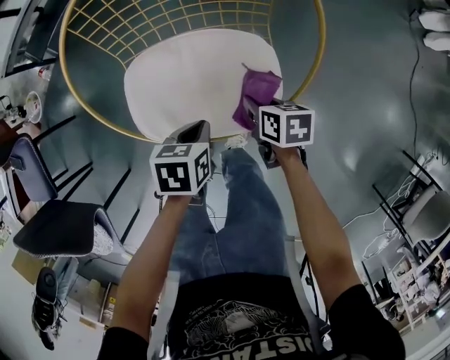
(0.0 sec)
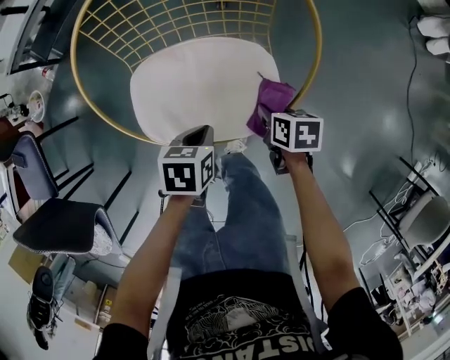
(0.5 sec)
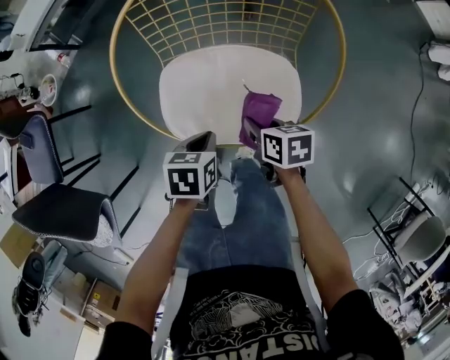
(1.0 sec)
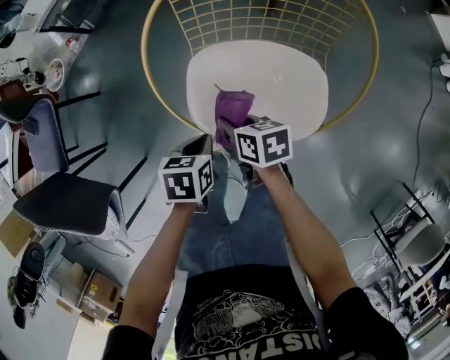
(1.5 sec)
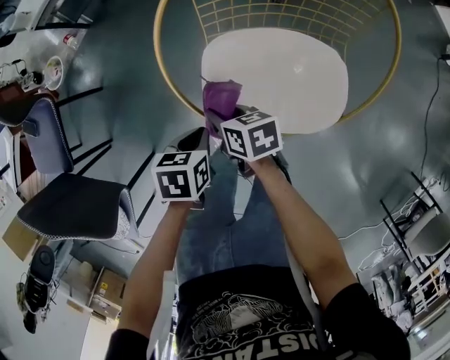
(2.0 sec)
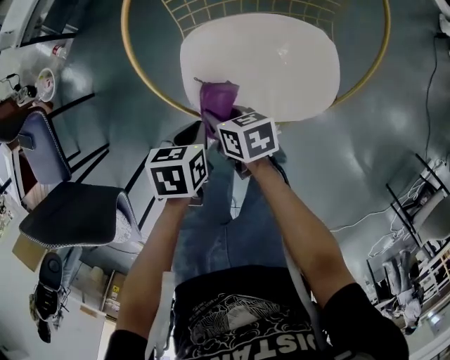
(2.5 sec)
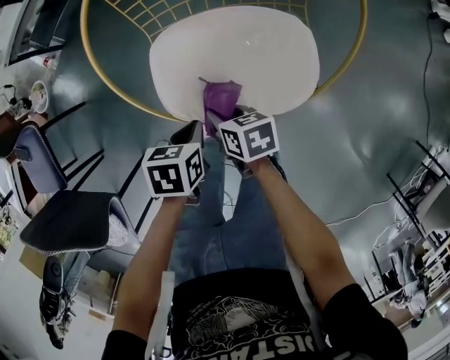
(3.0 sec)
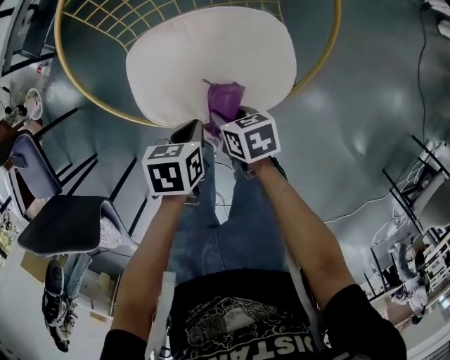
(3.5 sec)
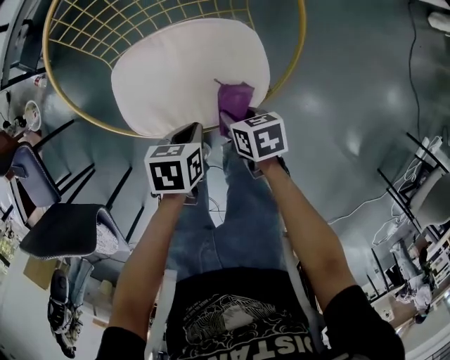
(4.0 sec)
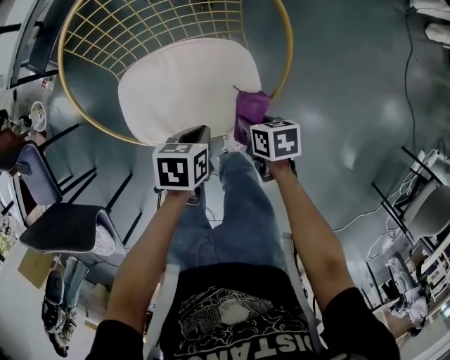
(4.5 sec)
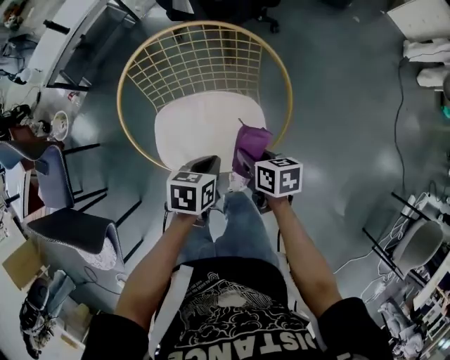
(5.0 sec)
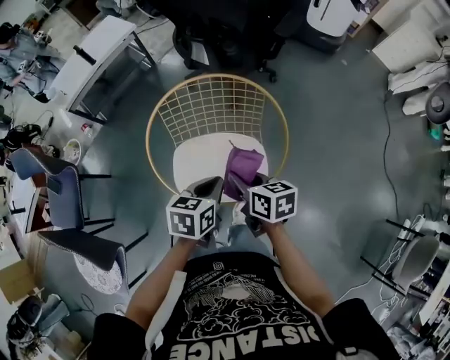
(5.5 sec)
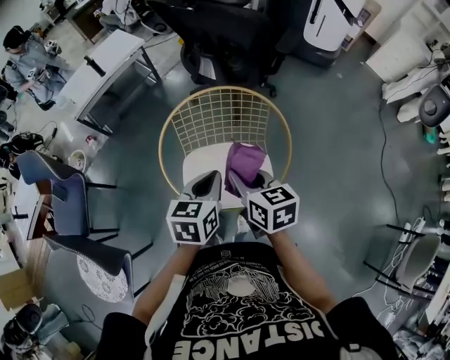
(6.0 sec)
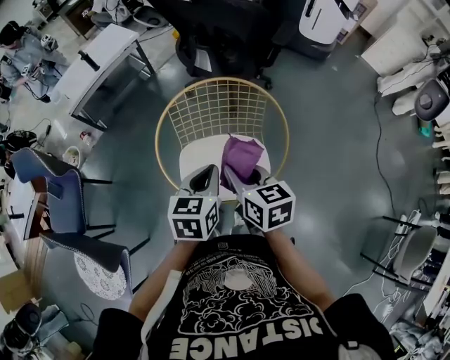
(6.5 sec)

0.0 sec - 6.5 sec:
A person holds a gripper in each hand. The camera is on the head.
0.0 sec - 2.0 sec: Both grippers travel together to the left, roughly 25 cm. The right gripper turns by some 20 degrees.
2.0 sec - 4.5 sec: Both grippers move to the right, roughly 30 cm.
4.5 sec - 6.5 sec: Both grippers travel together upward, about 30 cm. The left gripper turns by approximately 40 degrees; the right gripper rotates about 40 degrees.

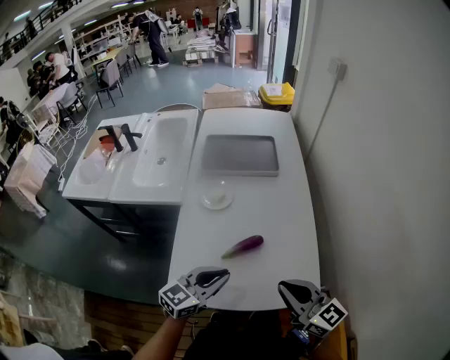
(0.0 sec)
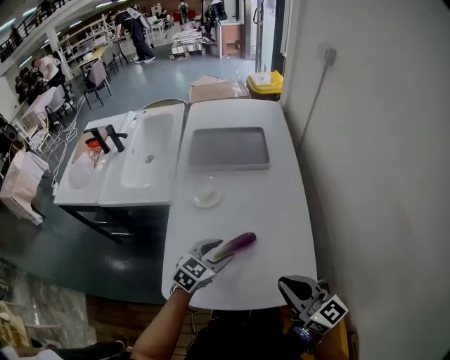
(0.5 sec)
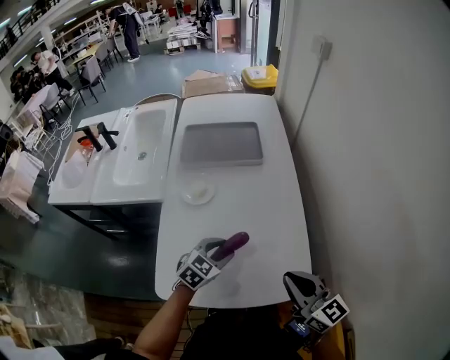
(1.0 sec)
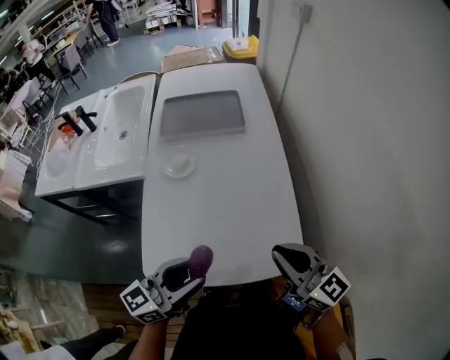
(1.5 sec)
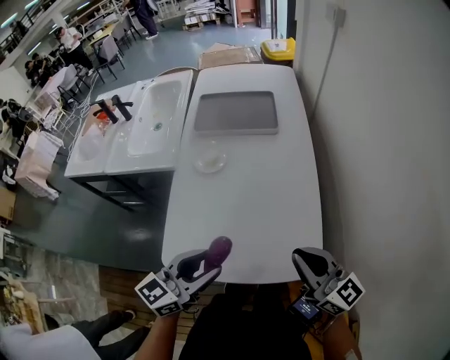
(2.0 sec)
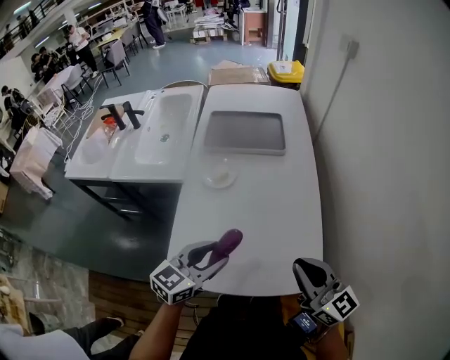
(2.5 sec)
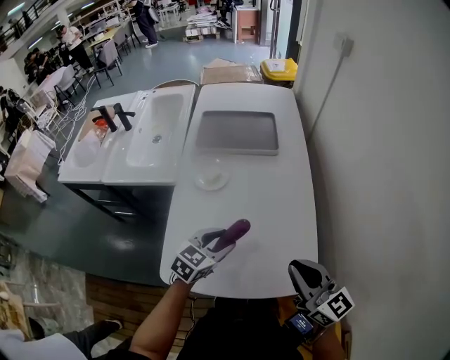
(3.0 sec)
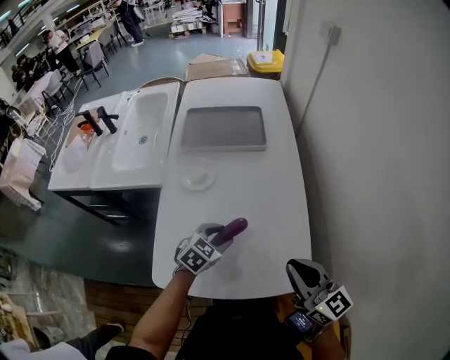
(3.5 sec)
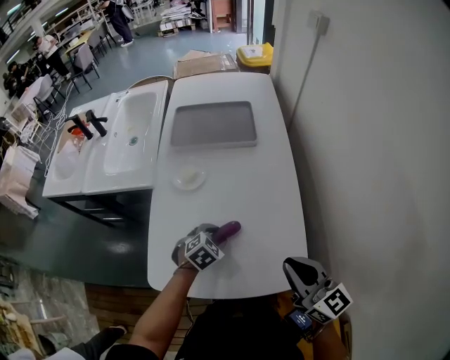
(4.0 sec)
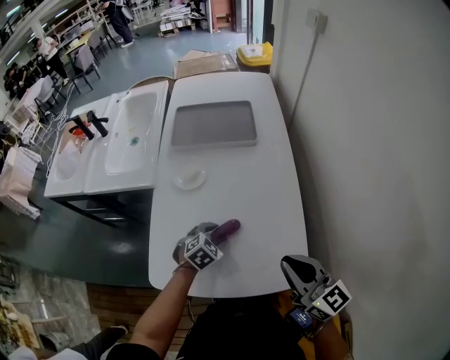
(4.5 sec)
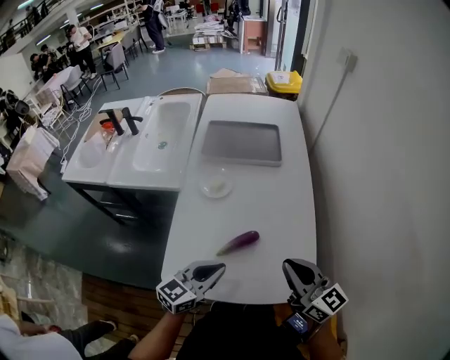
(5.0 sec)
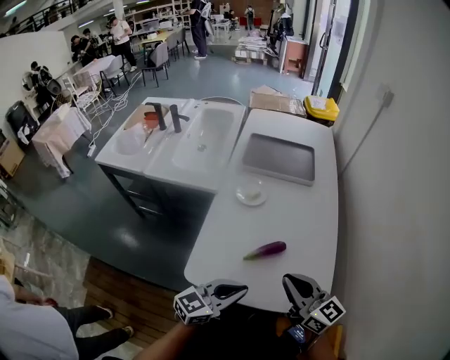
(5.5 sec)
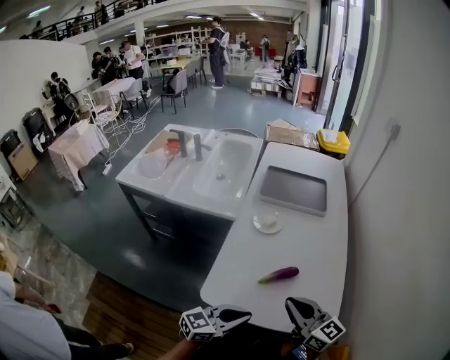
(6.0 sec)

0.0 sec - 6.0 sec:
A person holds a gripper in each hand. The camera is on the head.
0.0 sec - 2.0 sec: The right gripper travels to the right by some 5 cm. The left gripper moves some 10 cm downward and comes back, and opens up.
2.0 sec - 4.0 sec: The left gripper moves downward and forward, approximately 25 cm, and tilts its fingers approximately 50 degrees downward.
4.0 sec - 6.0 sec: The right gripper is displaced to the left and backward by about 20 cm. The left gripper heads backward and upward, covering roughly 30 cm, tips its fingers upward by roughly 50 degrees, and closes its fingers.

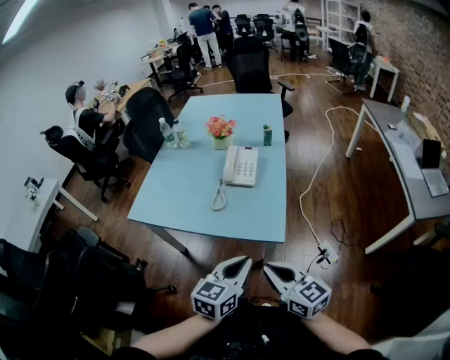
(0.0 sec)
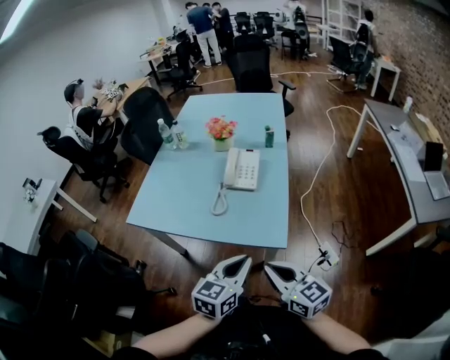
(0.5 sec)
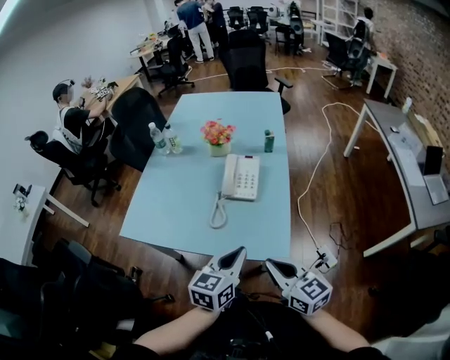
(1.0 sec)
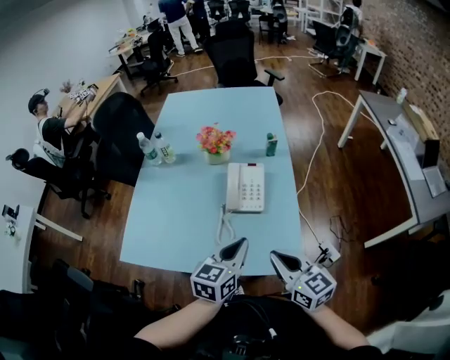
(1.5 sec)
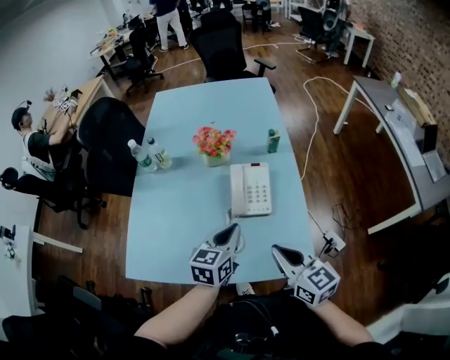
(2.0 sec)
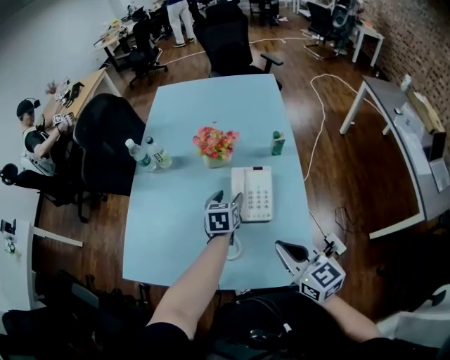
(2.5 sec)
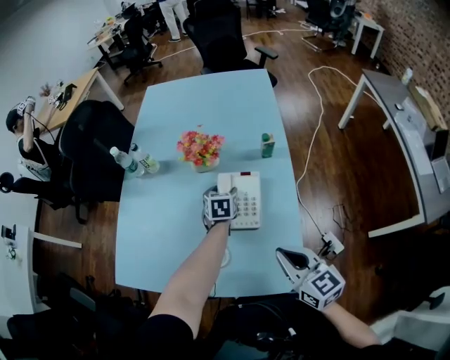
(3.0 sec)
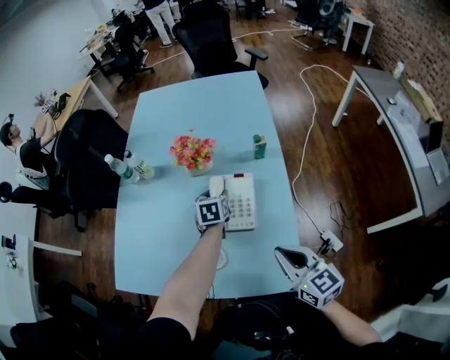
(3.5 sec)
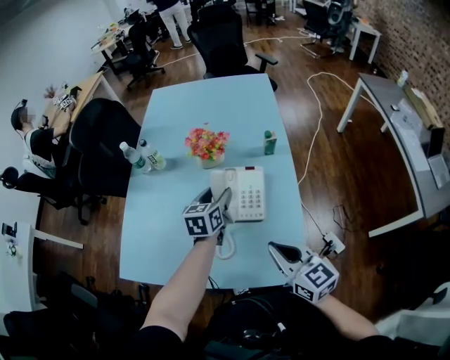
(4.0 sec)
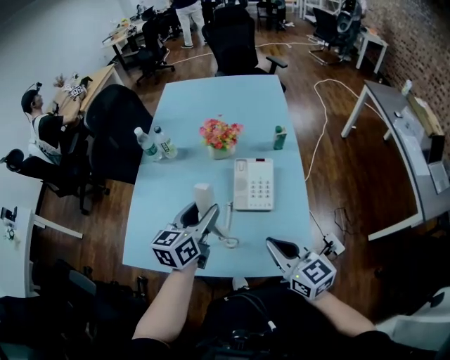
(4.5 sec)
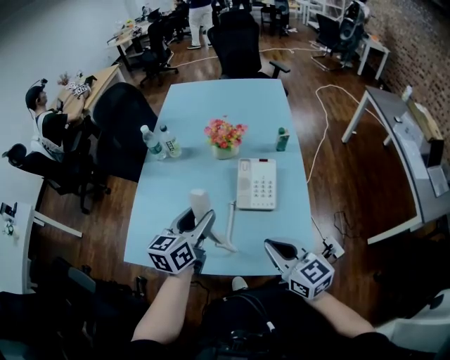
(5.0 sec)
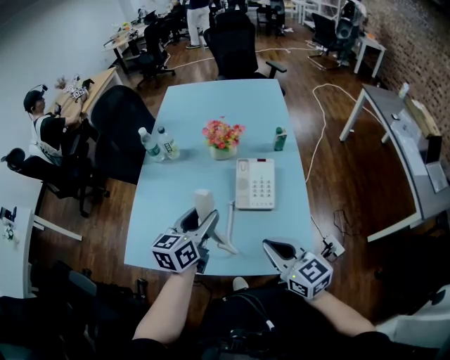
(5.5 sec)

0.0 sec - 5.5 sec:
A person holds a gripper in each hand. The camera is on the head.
0.0 sec - 2.0 sec: The two grippers go about 30 cm forward.
2.0 sec - 3.5 sec: The right gripper goes roughly 10 cm to the right; the left gripper travels forward and downward by roughly 25 cm, rotates some 30 degrees, and opens its fingers.
3.5 sec - 5.5 sec: The left gripper goes about 30 cm backward, upward and to the left, and turns by approximately 30 degrees, while the right gripper goes about 15 cm to the left and backward.

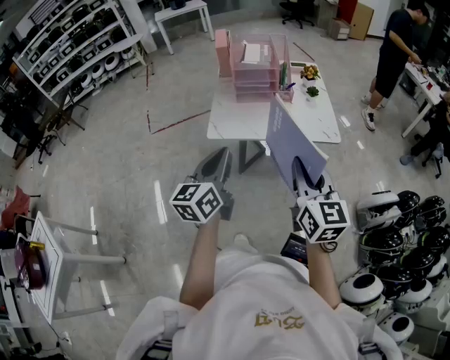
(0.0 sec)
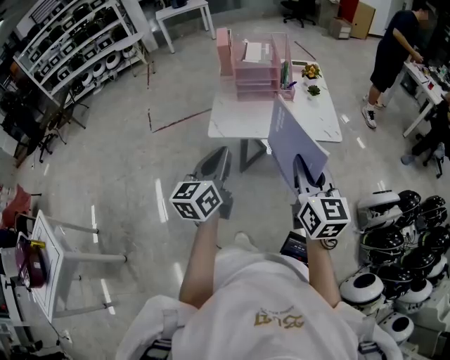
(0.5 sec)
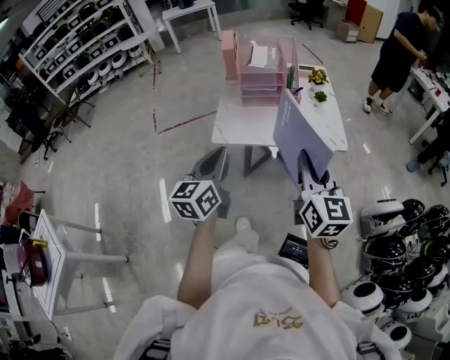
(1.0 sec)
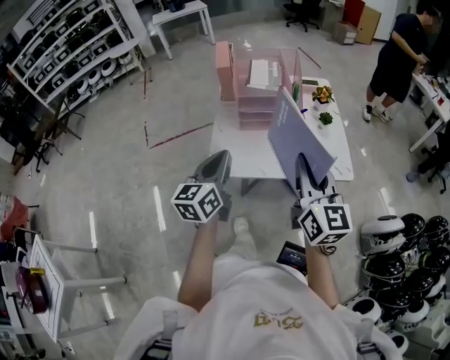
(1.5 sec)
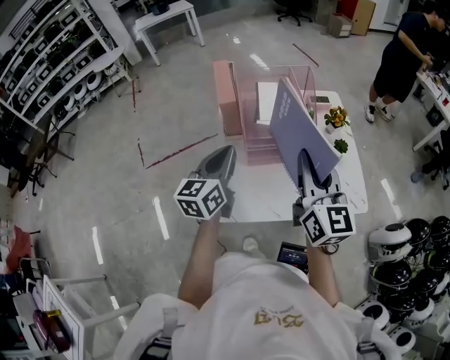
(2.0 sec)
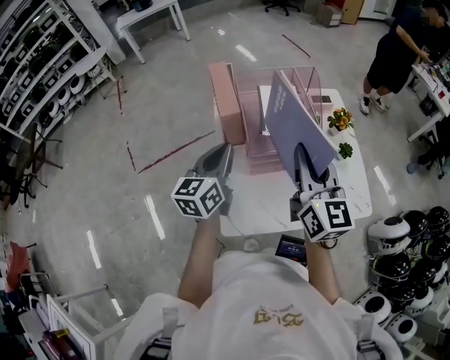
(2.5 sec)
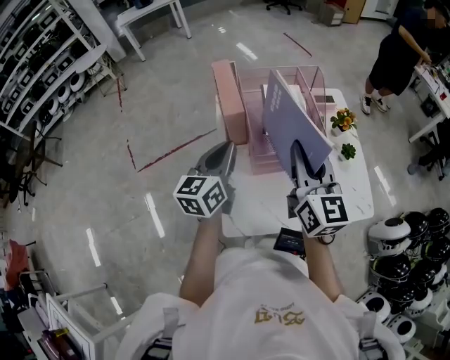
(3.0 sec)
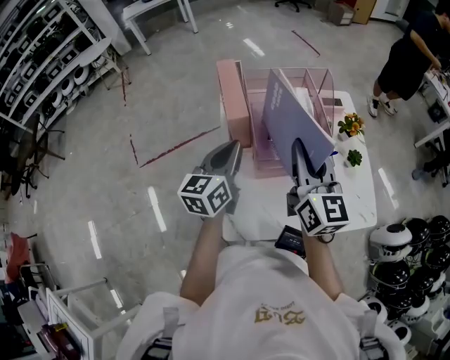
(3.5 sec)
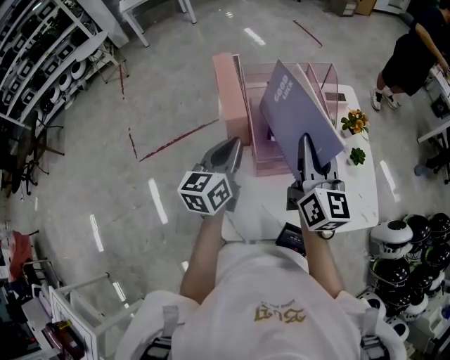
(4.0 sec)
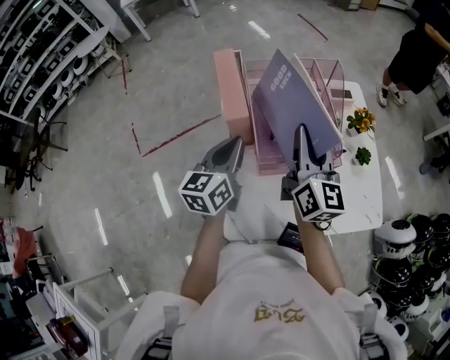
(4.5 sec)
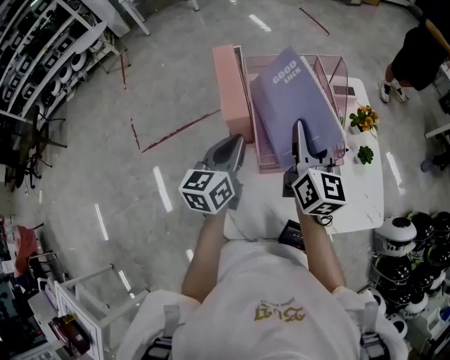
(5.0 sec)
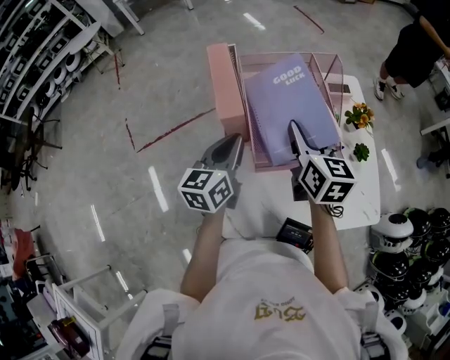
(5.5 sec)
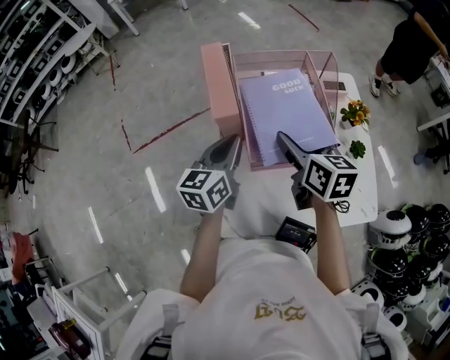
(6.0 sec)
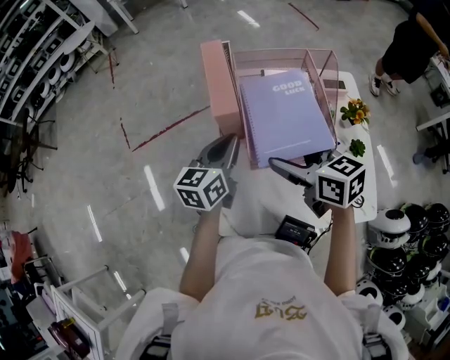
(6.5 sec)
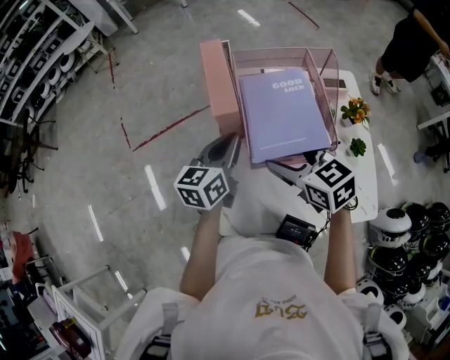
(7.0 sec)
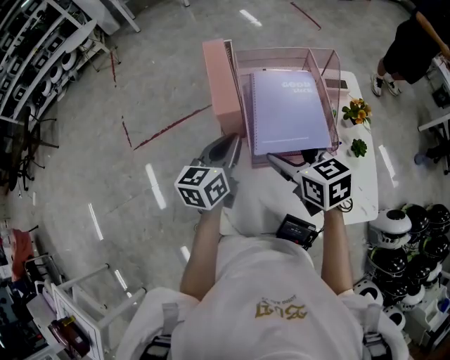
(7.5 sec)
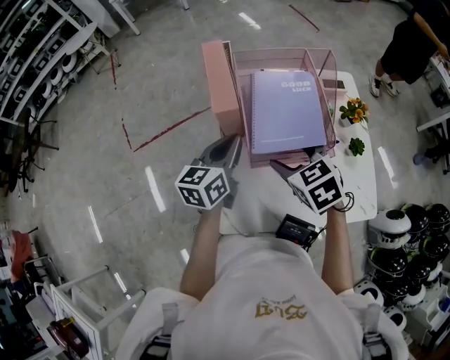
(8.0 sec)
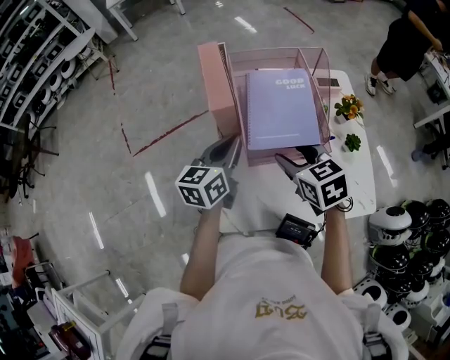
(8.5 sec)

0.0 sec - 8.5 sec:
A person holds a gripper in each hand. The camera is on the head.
0.0 sec - 2.0 sec: Both grippers are carried forward, roughly 40 cm.
2.0 sec - 4.0 sec: The left gripper goes roughly 15 cm forward and downward. Meanwhile the right gripper goes roughly 15 cm forward.
4.0 sec - 6.5 sec: The right gripper shifts some 10 cm downward and to the left, changes its angle by some 50 degrees, and opens up.
6.5 sec - 8.5 sec: The right gripper rotates about 20 degrees, and closes.
